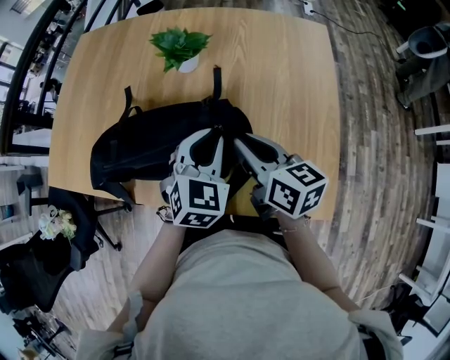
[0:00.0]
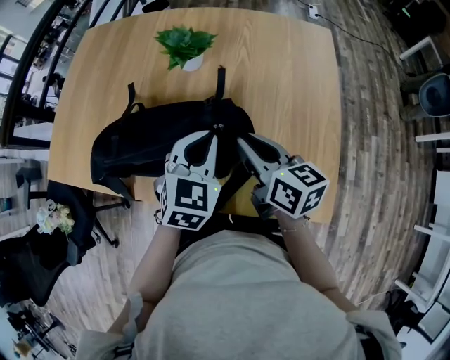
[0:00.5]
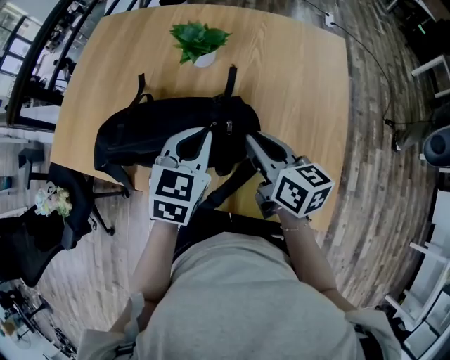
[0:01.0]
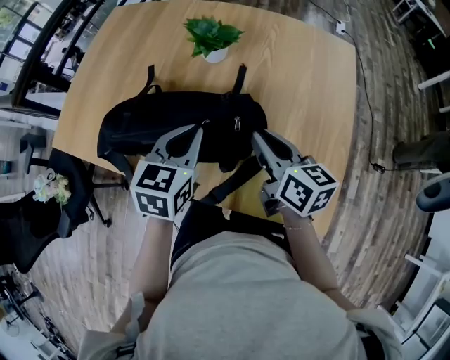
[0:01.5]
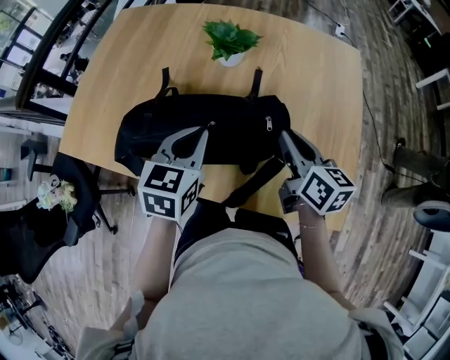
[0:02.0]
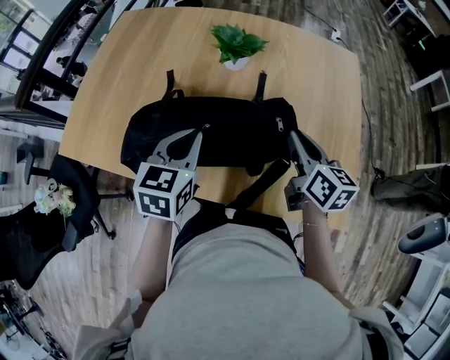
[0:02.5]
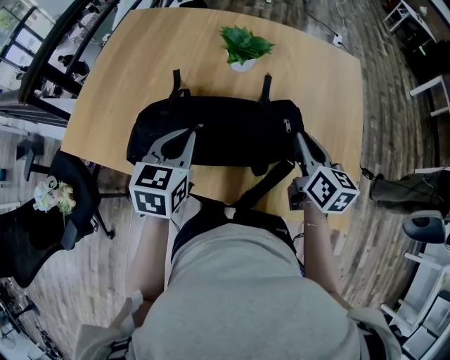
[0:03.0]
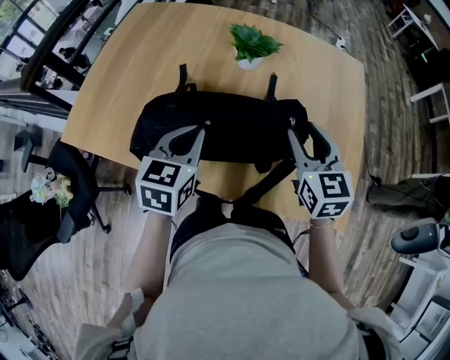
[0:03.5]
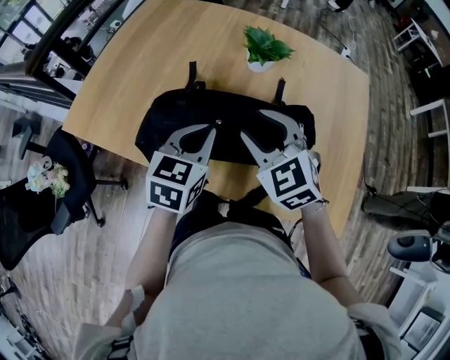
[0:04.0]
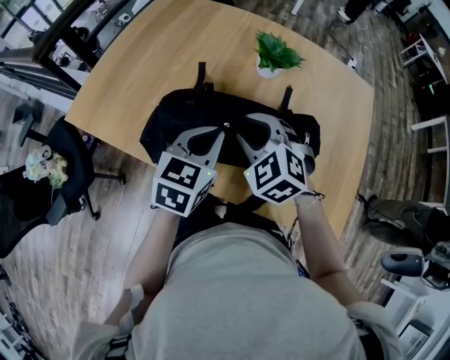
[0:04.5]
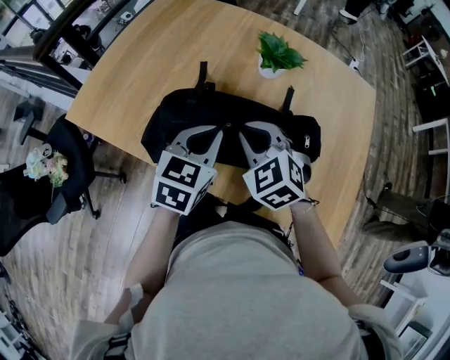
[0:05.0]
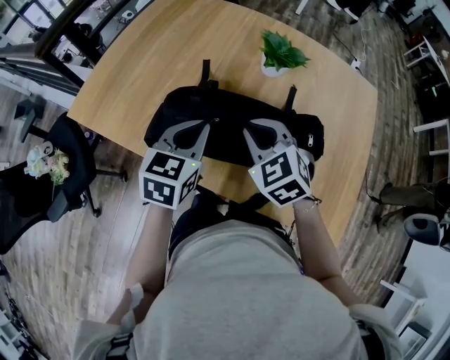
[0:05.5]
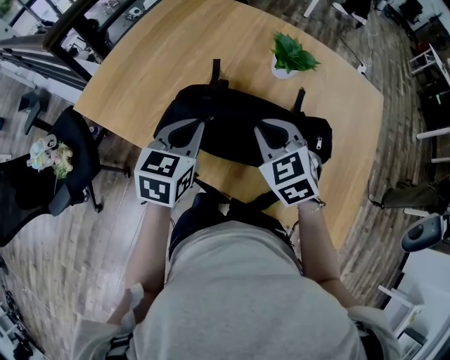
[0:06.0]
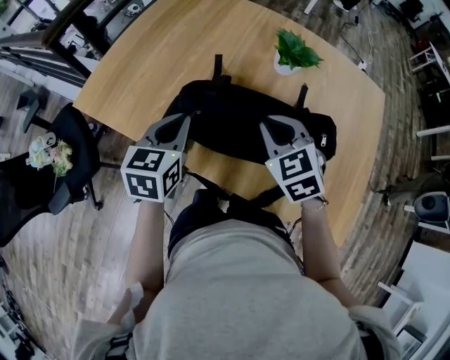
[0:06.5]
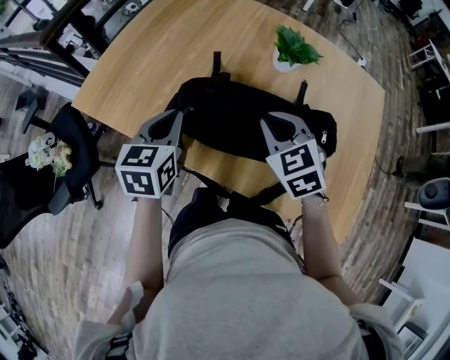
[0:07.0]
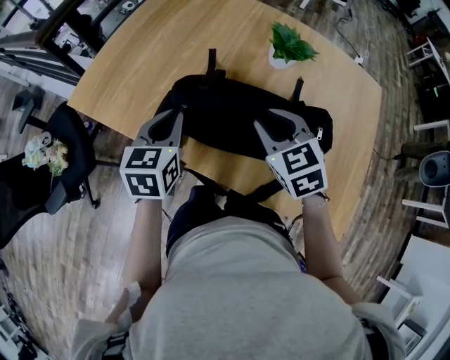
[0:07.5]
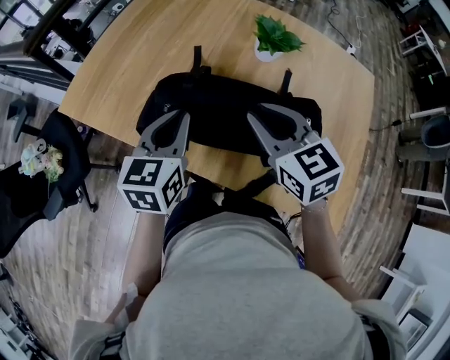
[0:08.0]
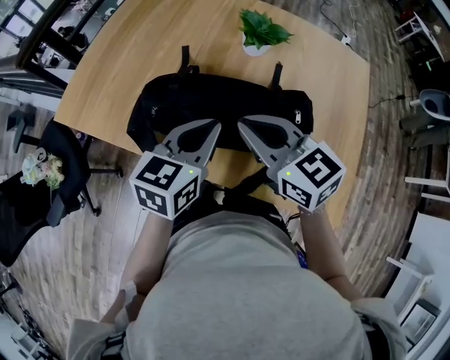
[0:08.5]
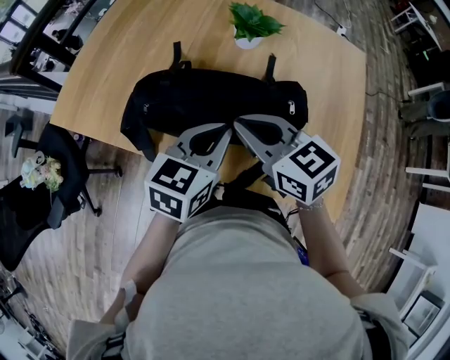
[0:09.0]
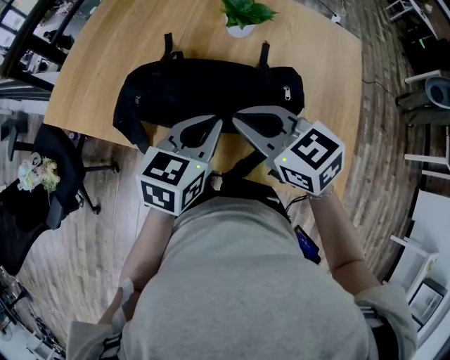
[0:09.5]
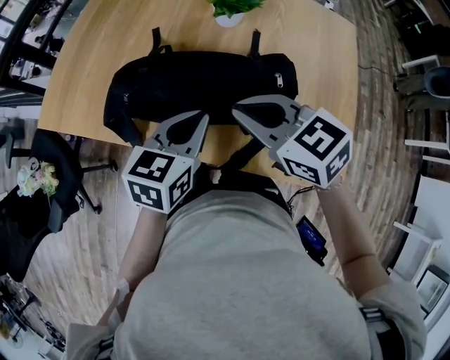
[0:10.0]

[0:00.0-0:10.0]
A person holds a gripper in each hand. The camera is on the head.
0.0 to 2.0 s: The left gripper goes roughly 15 cm to the left, and turns by roughly 30 degrees.
2.0 to 4.0 s: The right gripper goes roughly 20 cm to the left, rolls counterclockwise, seen from behind, by approximately 70 degrees, and opens. The left gripper travels to the left by approximately 5 cm.
4.0 to 6.0 s: The left gripper shifts roughly 10 cm to the left, while the right gripper closes its fingers.
6.0 to 8.0 s: The right gripper shifts by approximately 5 cm, and changes its angle by approximately 20 degrees.
8.0 to 10.0 s: The left gripper shifts some 15 cm to the right and backward, and changes its angle by approximately 20 degrees, while the right gripper goes about 5 cm backward.

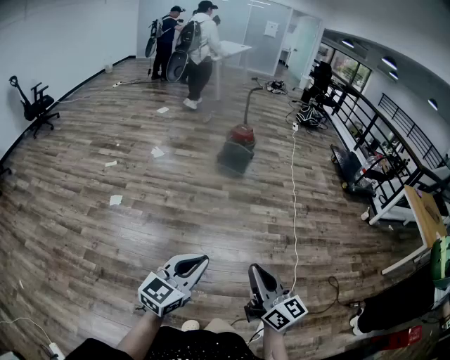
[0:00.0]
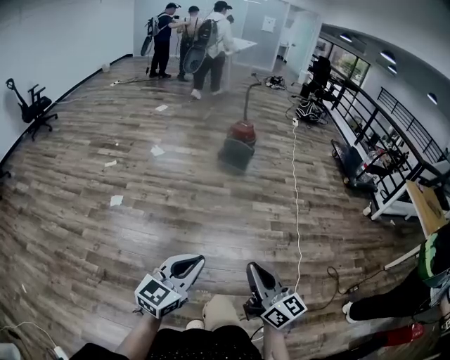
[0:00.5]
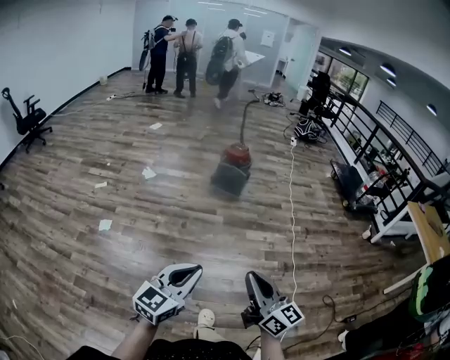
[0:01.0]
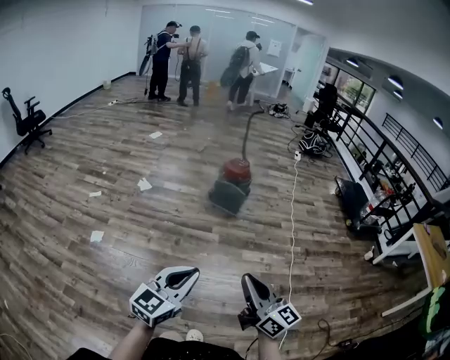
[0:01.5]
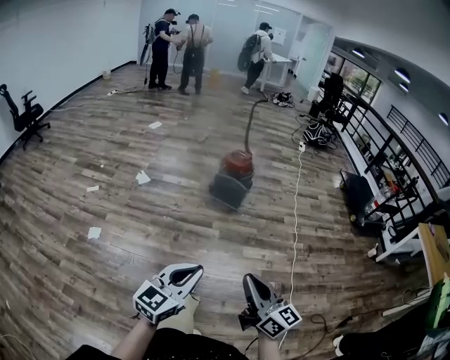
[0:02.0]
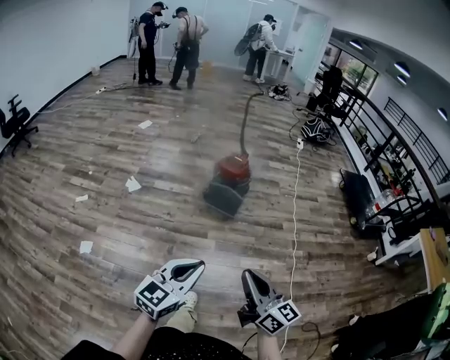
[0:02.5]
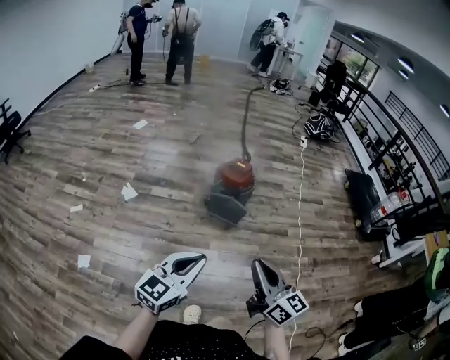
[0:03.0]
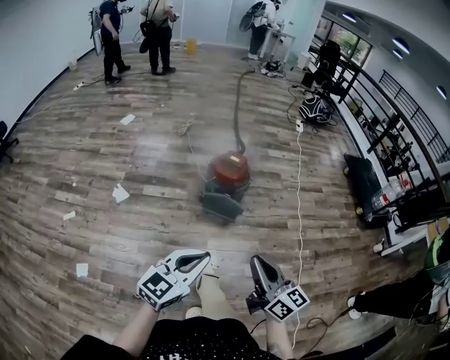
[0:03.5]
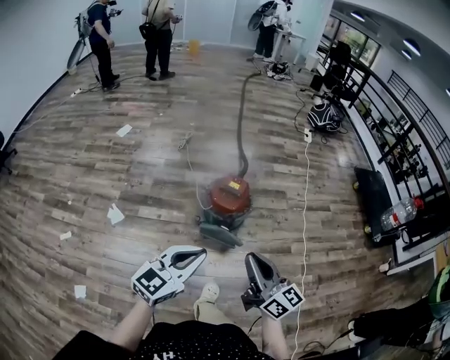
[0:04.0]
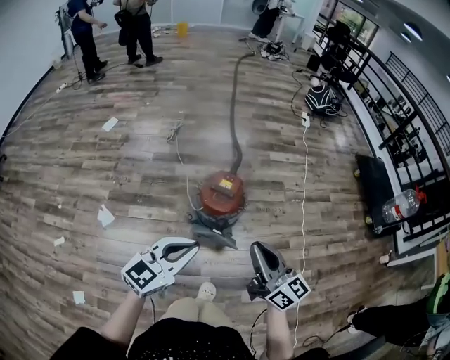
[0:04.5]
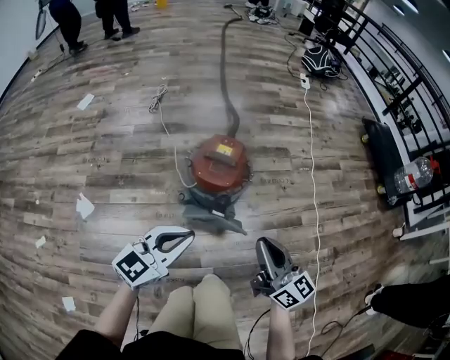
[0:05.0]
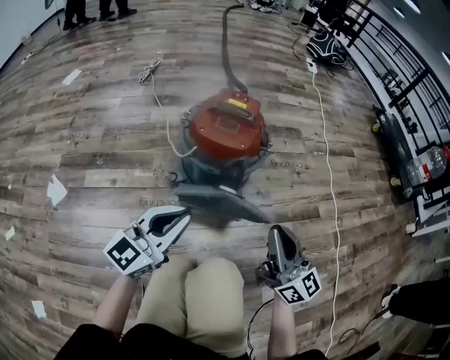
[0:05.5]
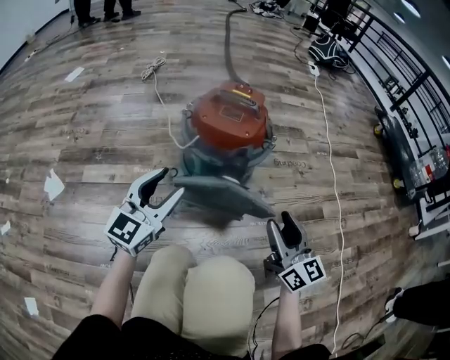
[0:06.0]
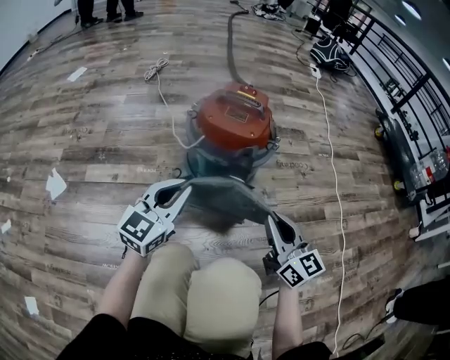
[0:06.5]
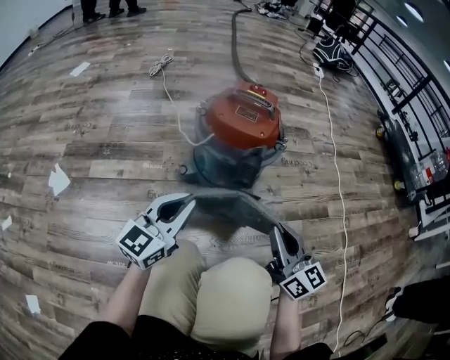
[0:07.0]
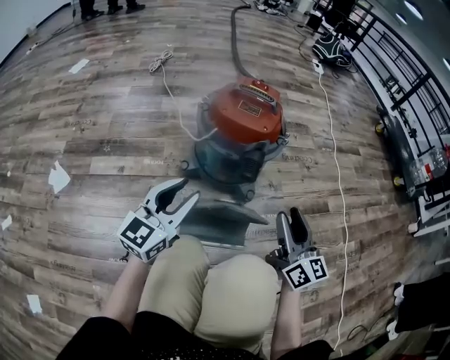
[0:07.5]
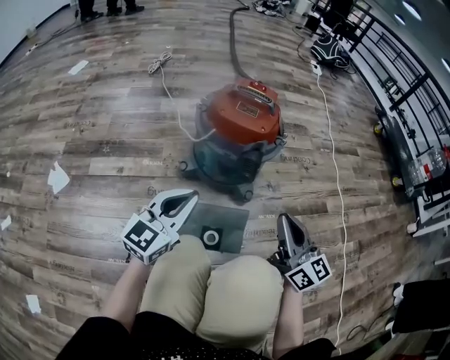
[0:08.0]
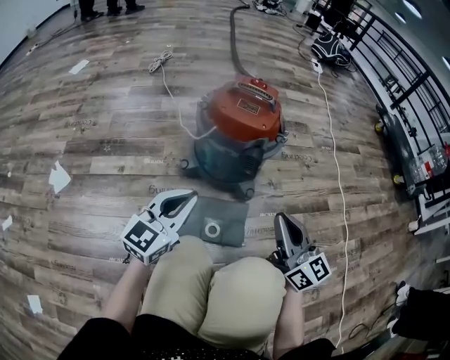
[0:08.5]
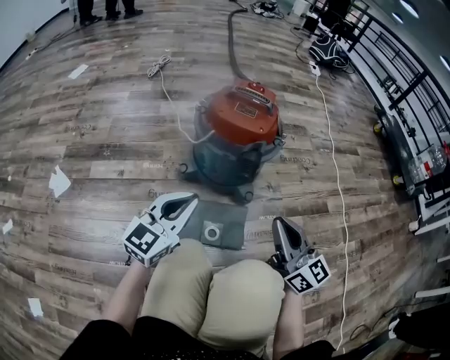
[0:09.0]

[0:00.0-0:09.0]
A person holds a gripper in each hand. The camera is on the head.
0.0 to 2.0 s: Both grippers travel together forward, some 40 cm.
2.0 to 4.5 s: The two grippers travel together, forward, some 80 cm.
4.5 to 7.0 s: Both grippers move downward, approximately 50 cm. The left gripper opens and closes again. The right gripper opens, then closes again.
7.0 to 9.0 s: The right gripper opens and closes again. Meanwhile the left gripper opens, then closes once more.

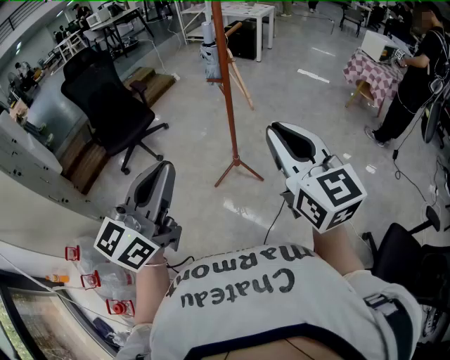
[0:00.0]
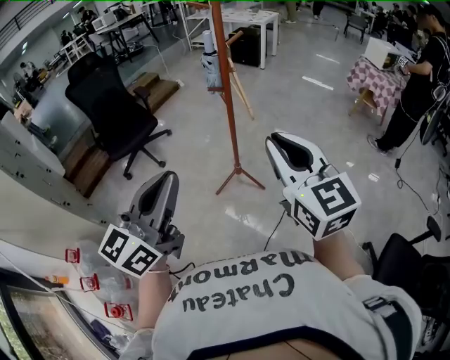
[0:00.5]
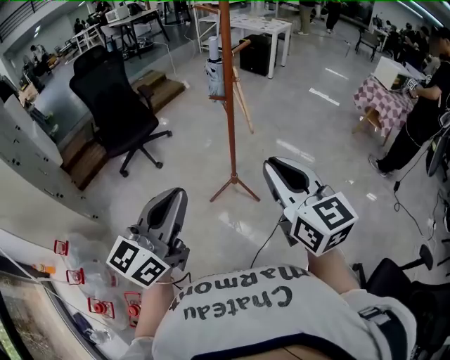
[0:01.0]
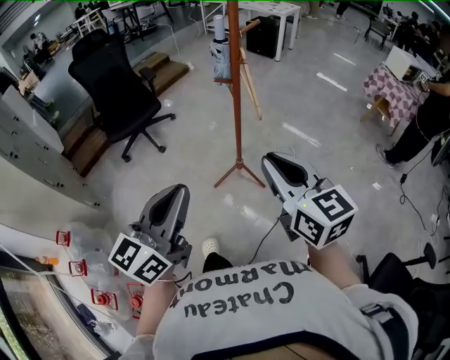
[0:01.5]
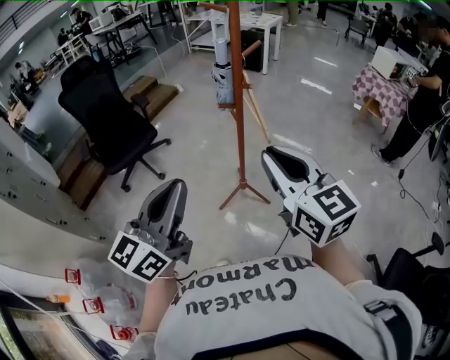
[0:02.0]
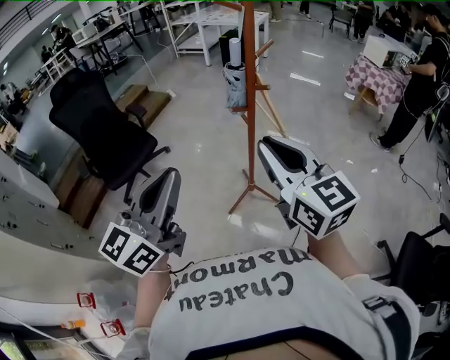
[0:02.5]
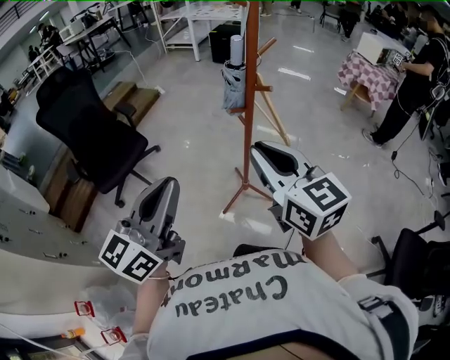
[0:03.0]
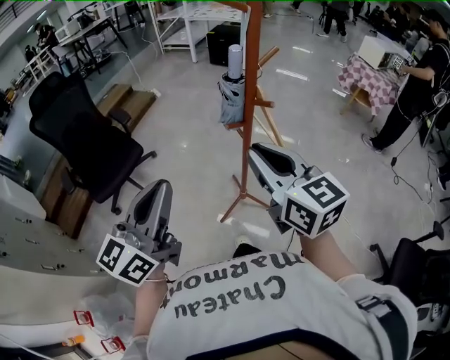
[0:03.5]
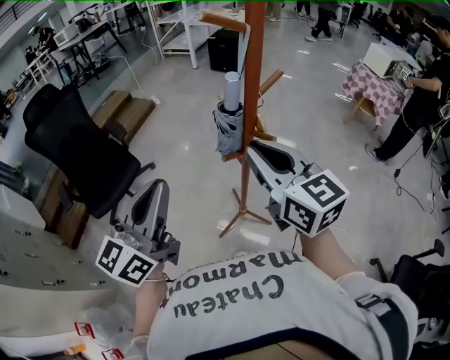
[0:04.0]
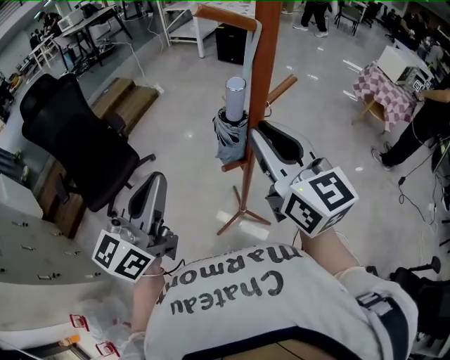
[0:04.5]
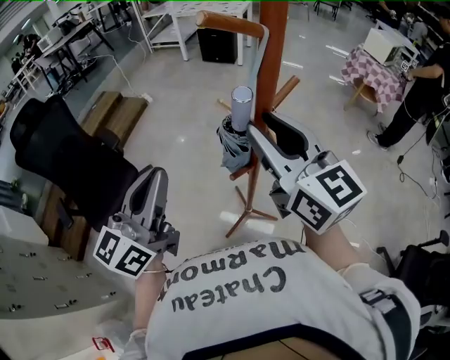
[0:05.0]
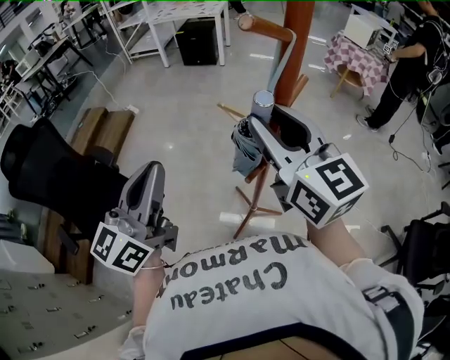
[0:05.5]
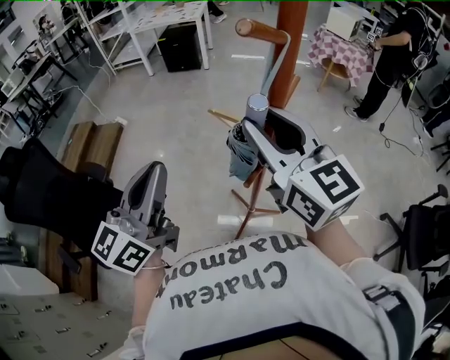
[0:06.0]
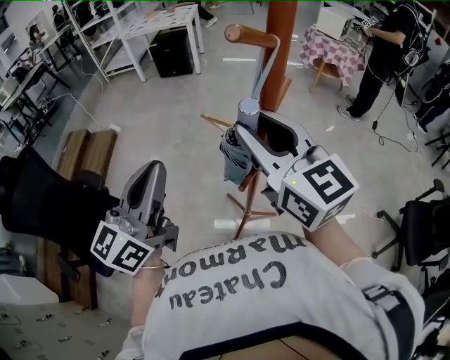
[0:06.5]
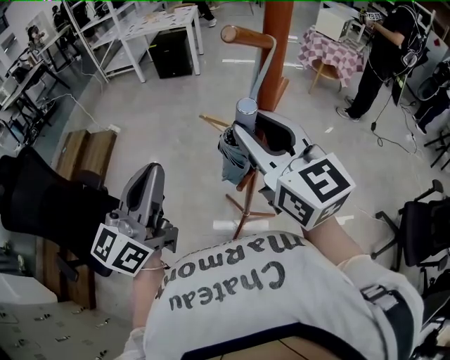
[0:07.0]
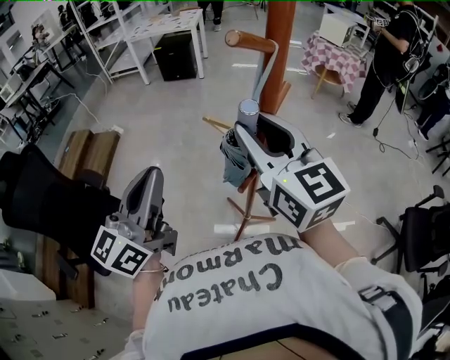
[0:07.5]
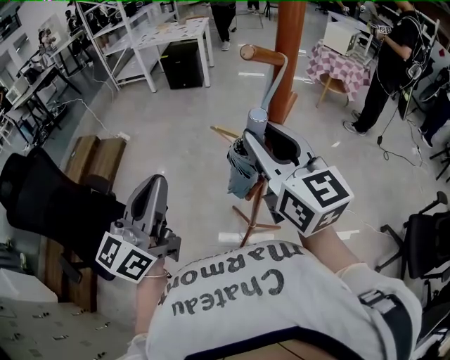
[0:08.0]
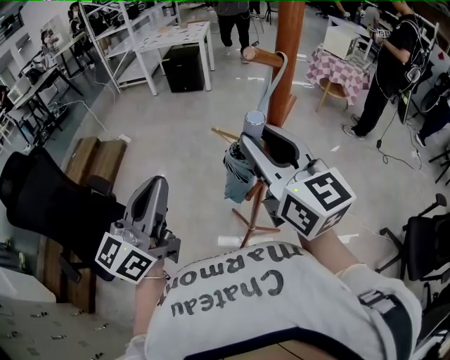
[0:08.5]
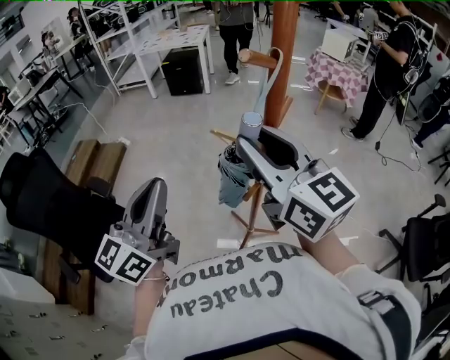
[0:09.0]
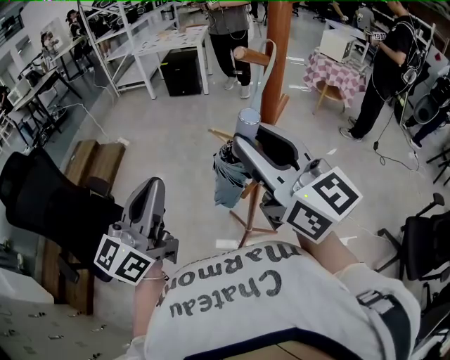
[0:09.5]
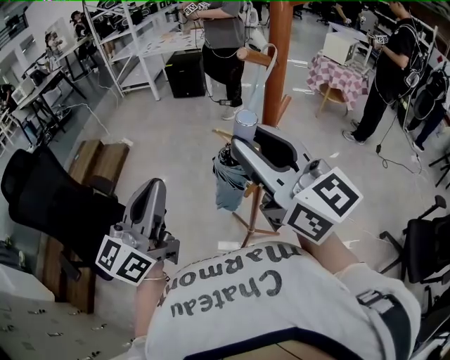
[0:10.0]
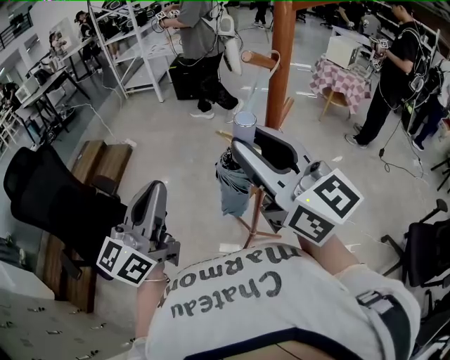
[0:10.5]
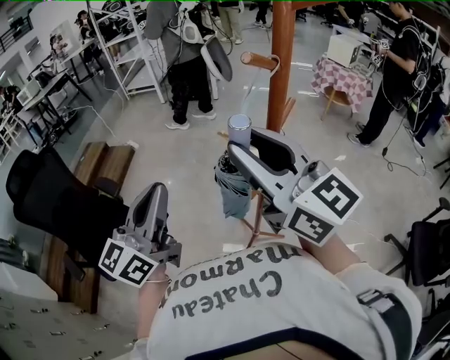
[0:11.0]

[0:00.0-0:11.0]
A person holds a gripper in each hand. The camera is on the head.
0.0 to 2.0 s: The left gripper heads forward, covering approximately 15 cm. The right gripper goes some 15 cm forward and to the left.
2.0 to 3.5 s: Both grippers move forward and to the left, some 20 cm.
3.5 to 5.5 s: The two grippers go some 25 cm forward. The right gripper opens.
5.5 to 9.0 s: The grippers move only a little.
9.0 to 11.0 s: The right gripper ends up some 5 cm from where it was.
